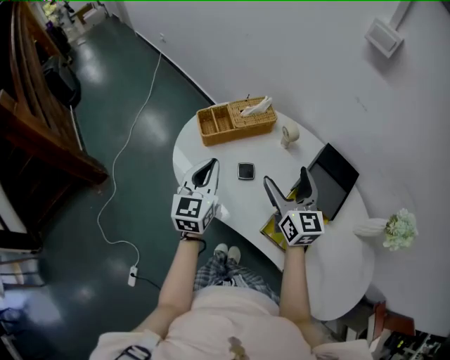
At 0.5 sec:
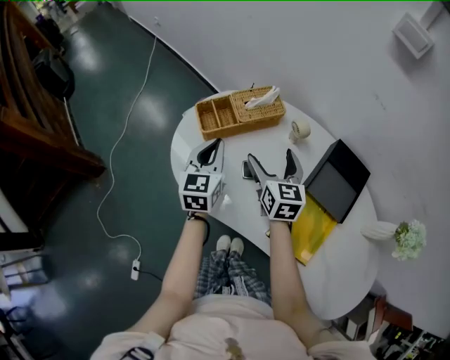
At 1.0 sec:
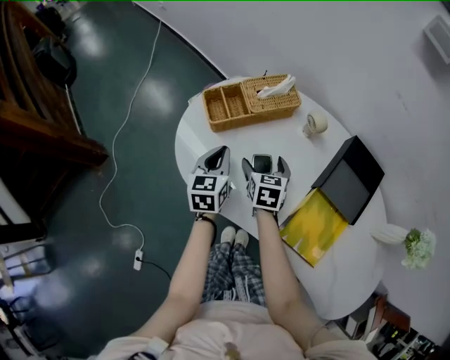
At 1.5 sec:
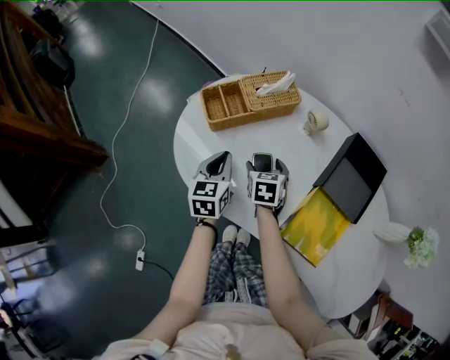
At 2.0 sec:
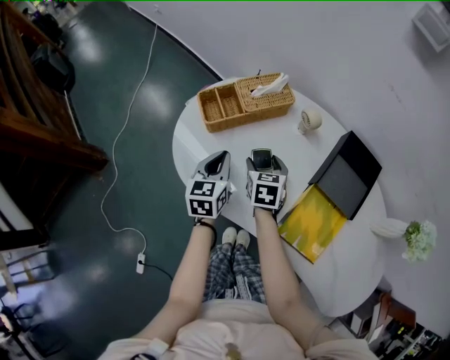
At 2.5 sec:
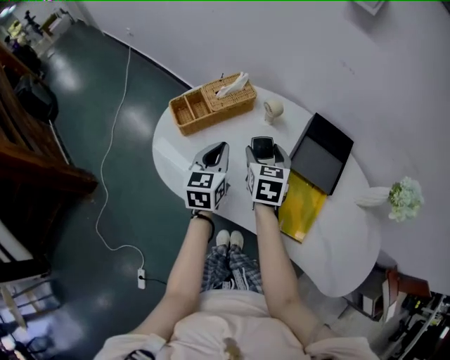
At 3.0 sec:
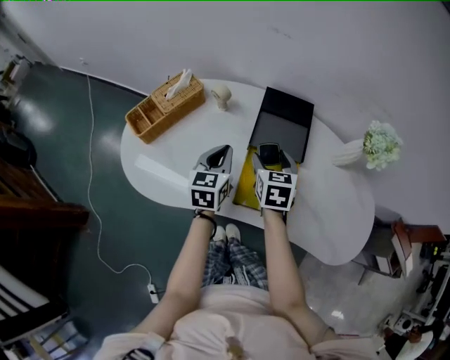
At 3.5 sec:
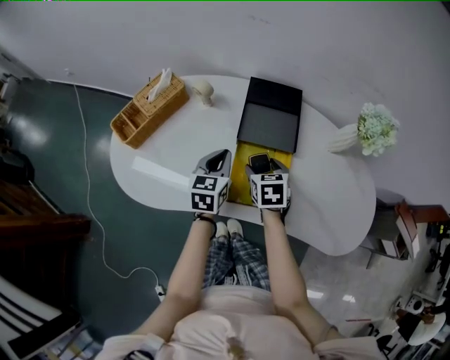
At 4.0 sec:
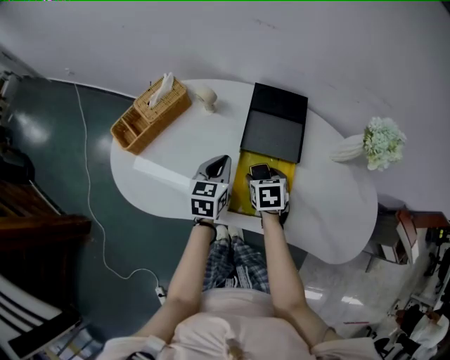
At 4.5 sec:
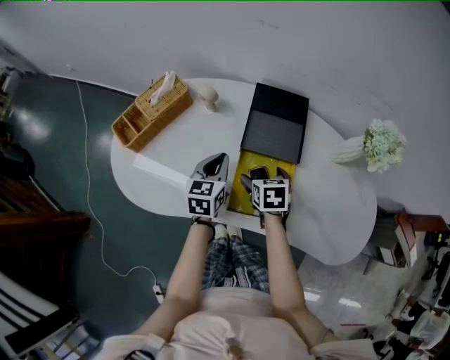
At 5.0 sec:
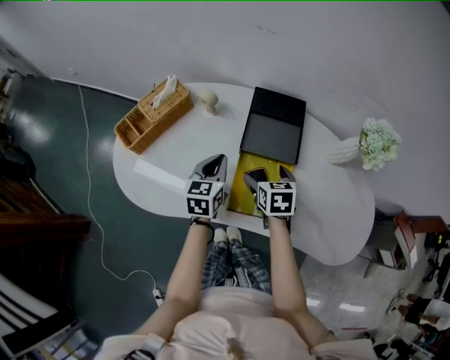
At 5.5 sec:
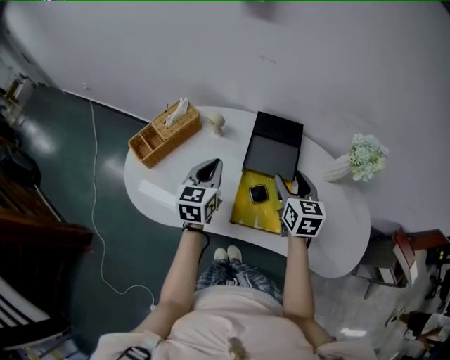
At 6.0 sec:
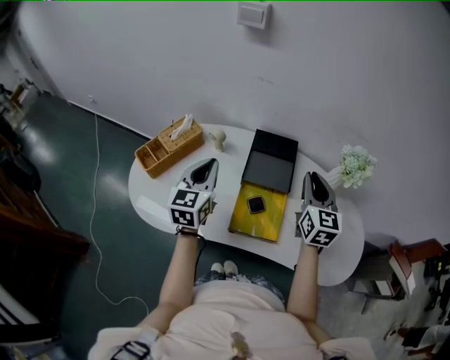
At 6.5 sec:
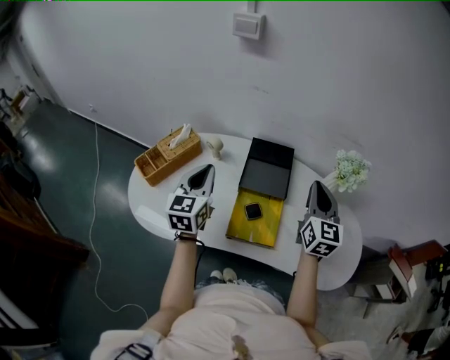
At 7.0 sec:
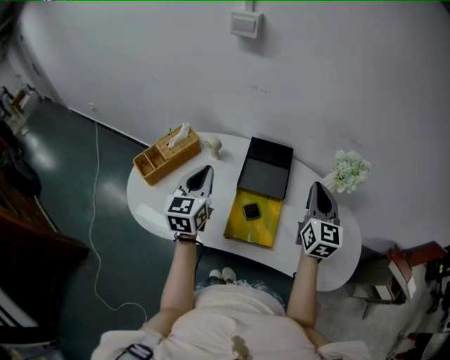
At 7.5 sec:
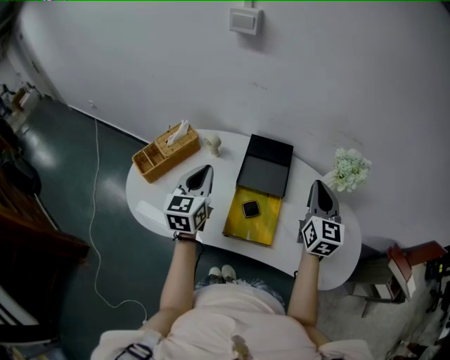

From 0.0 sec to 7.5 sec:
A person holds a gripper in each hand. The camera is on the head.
From 0.0 sec to 2.0 sec: The right gripper heads downward and to the left, covering some 25 cm, and tips its fingers downward by approximately 40 degrees, while the left gripper shifts roughly 15 cm downward and forward.
From 2.0 sec to 4.0 sec: The two grippers go roughly 25 cm to the right. The left gripper rotates about 30 degrees; the right gripper swivels some 20 degrees.
From 4.0 sec to 5.5 sec: The left gripper shifts approximately 10 cm upward. The right gripper shifts roughly 15 cm upward, and tilts its fingers some 30 degrees upward.
From 5.5 sec to 7.5 sec: The right gripper travels upward and to the right by about 15 cm, changes its angle by roughly 20 degrees, and closes. Meanwhile the left gripper is displaced upward by some 10 cm.

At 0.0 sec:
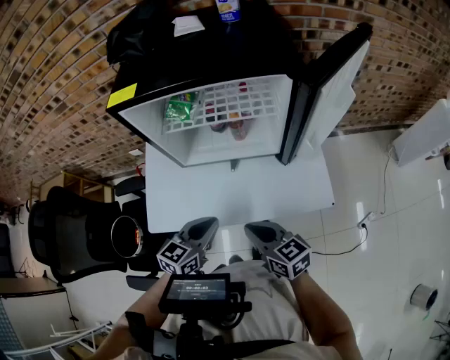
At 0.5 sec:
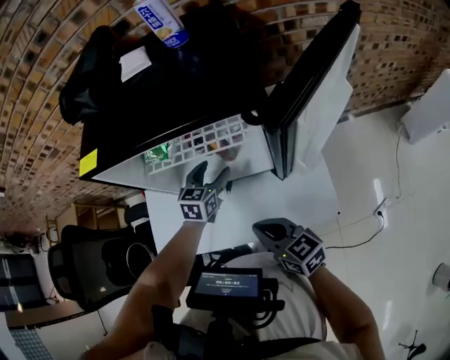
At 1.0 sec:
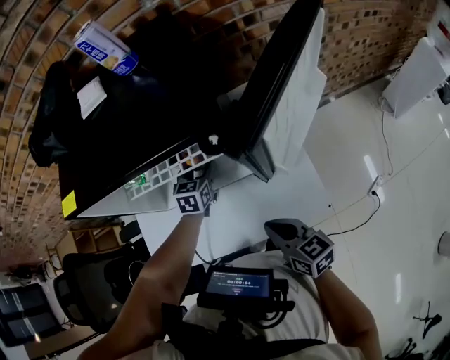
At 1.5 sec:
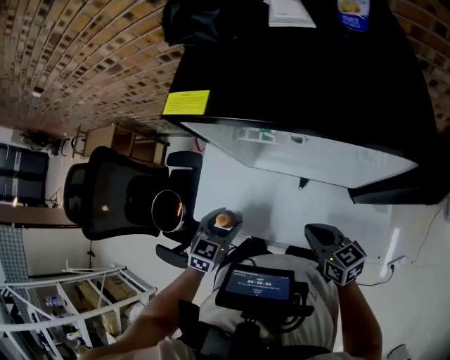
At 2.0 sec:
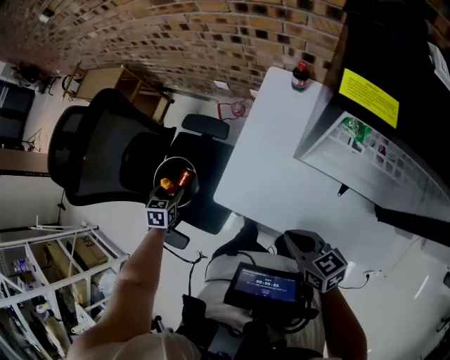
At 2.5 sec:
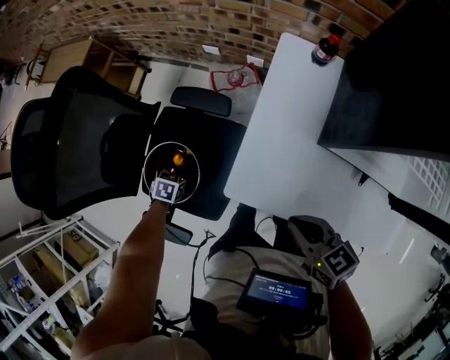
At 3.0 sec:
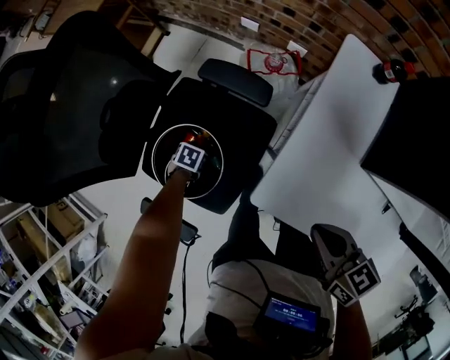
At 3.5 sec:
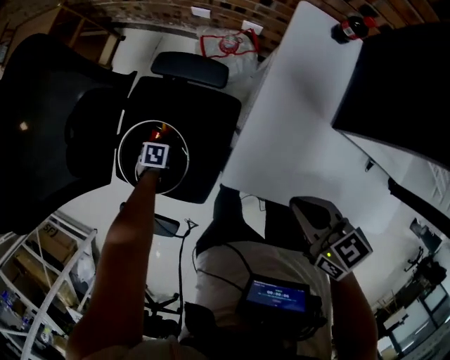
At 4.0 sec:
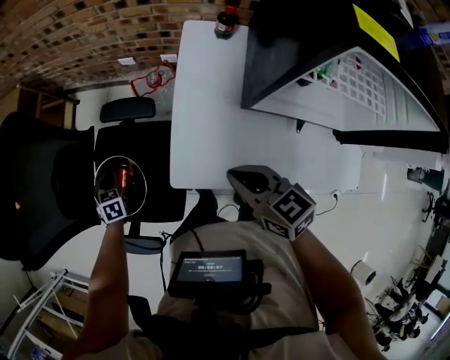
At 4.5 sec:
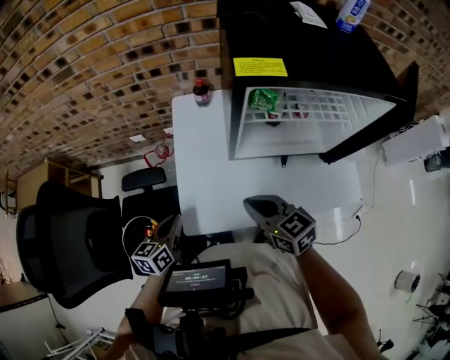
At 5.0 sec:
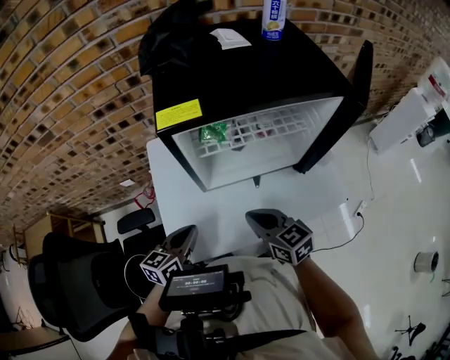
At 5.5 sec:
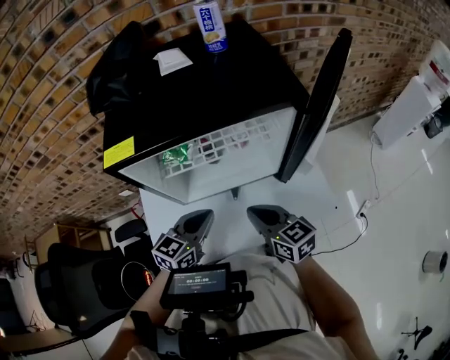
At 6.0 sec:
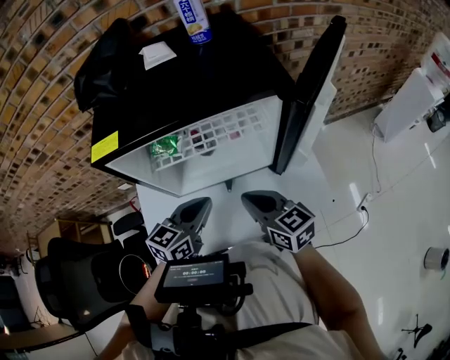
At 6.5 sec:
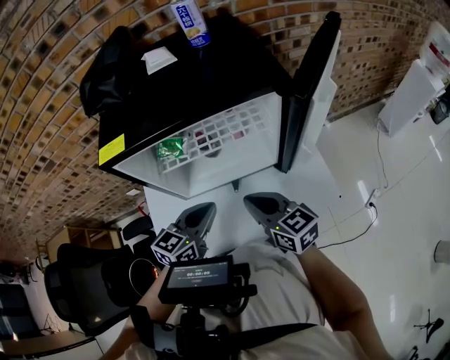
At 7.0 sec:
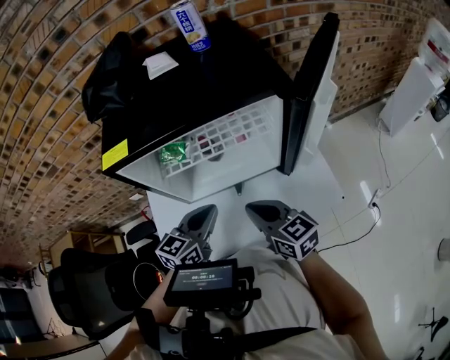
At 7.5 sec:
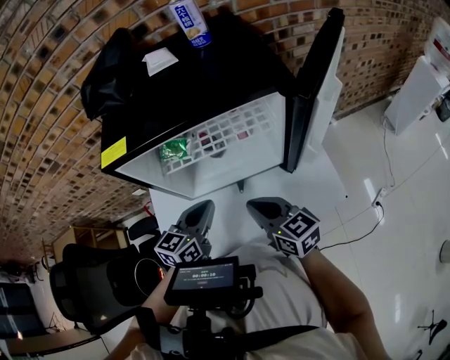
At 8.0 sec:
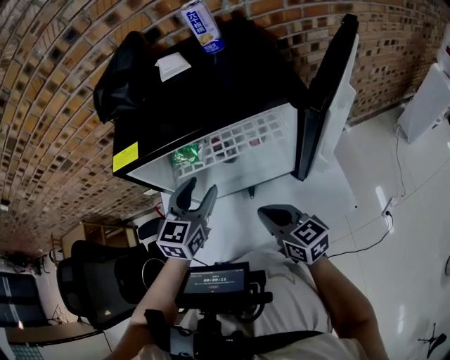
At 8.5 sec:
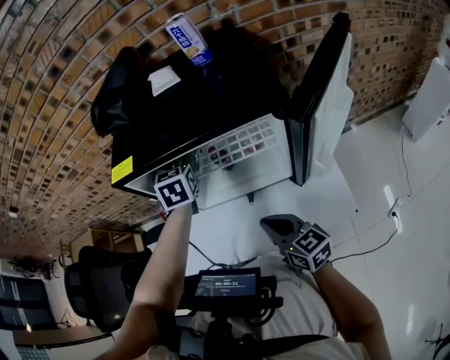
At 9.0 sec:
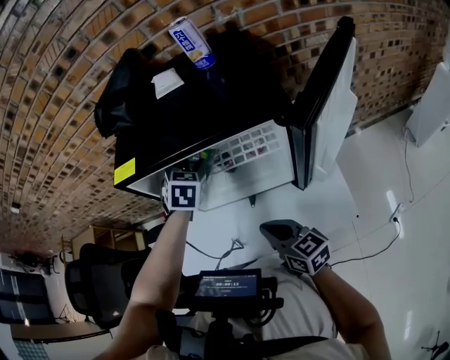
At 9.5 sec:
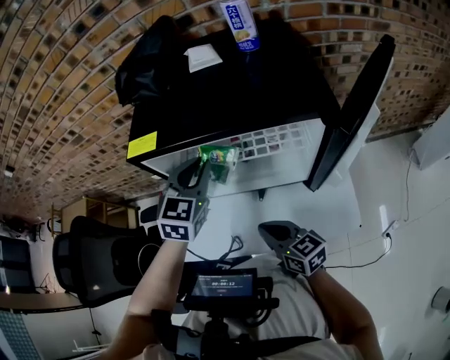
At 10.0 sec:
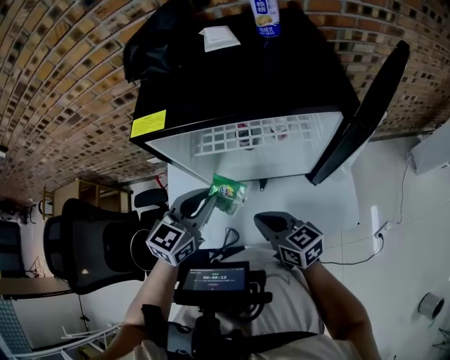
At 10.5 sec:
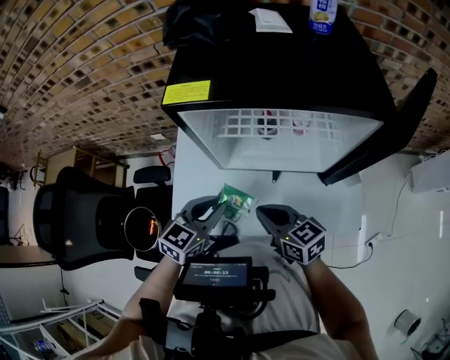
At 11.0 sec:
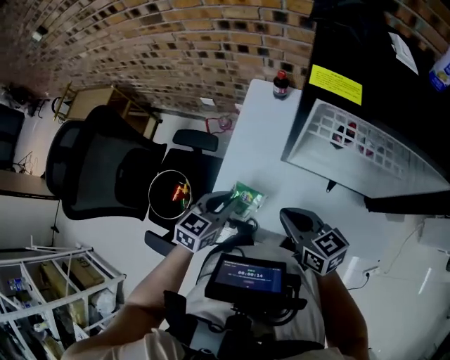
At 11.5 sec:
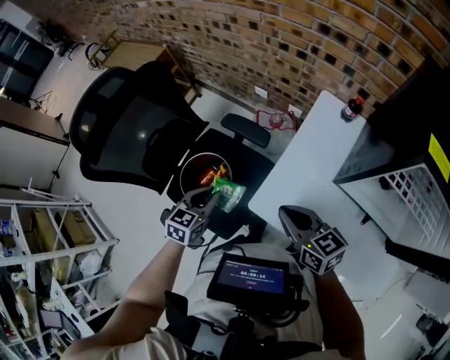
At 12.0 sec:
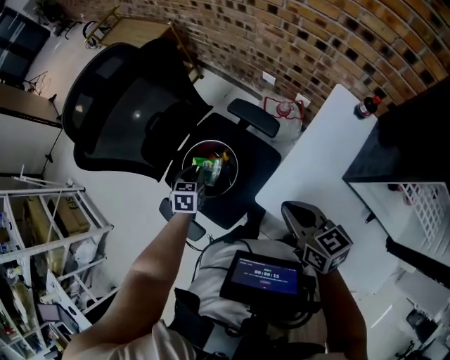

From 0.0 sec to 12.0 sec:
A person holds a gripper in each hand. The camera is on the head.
From 0.0 sec to 2.0 sec: The left gripper changes place by roughly 50 cm, rotates some 60 degrees, and opens. The right gripper changes place by approximately 15 cm, and rotates approximately 30 degrees.
From 2.0 sec to 4.0 sec: The left gripper moves about 25 cm downward and comes back, and closes up, while the right gripper shifts by approximately 15 cm.
From 4.0 sec to 6.0 sec: The left gripper ends up some 70 cm from where it was, and tips its fingers upward by about 30 degrees. Meanwhile the right gripper ends up some 35 cm from where it was, and rotates roughly 30 degrees.
From 6.0 sec to 8.0 sec: The left gripper travels forward by about 5 cm, rotates some 30 degrees, and opens.
From 8.0 sec to 10.0 sec: The right gripper shifts about 5 cm to the left; the left gripper moves about 15 cm forward and comes back, and closes up.
From 10.0 sec to 12.0 sec: The left gripper ends up some 60 cm from where it was, and changes its angle by about 70 degrees, while the right gripper ends up some 35 cm from where it was, and changes its angle by about 30 degrees.

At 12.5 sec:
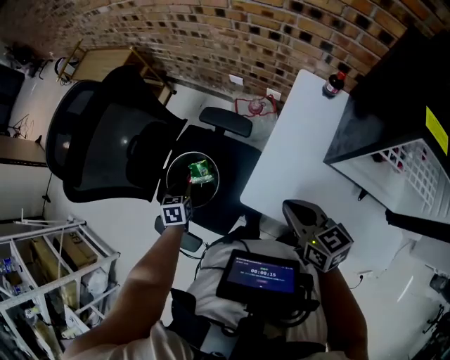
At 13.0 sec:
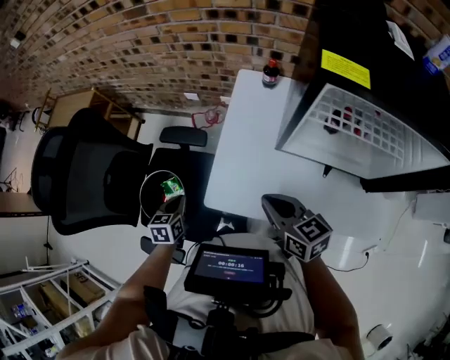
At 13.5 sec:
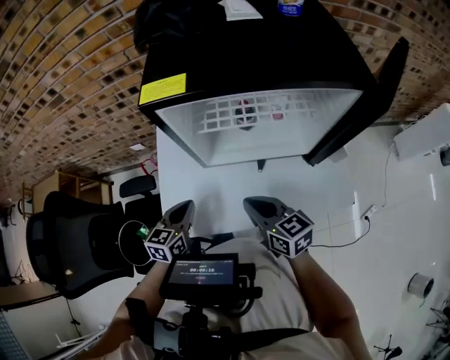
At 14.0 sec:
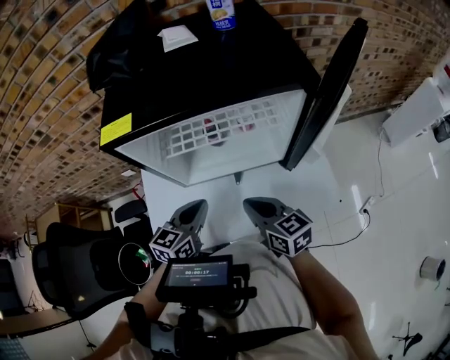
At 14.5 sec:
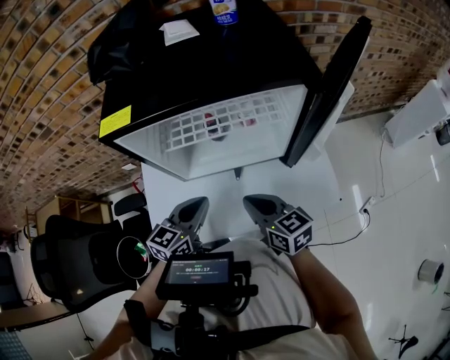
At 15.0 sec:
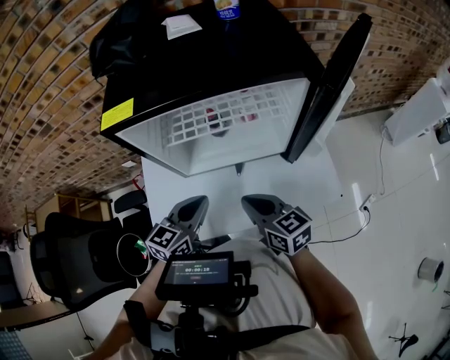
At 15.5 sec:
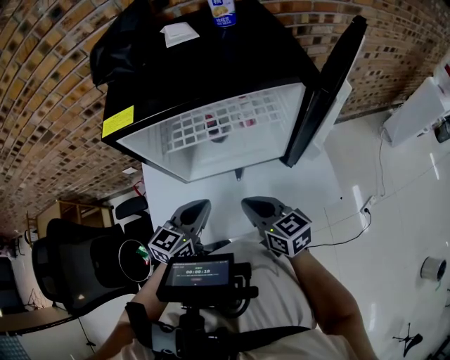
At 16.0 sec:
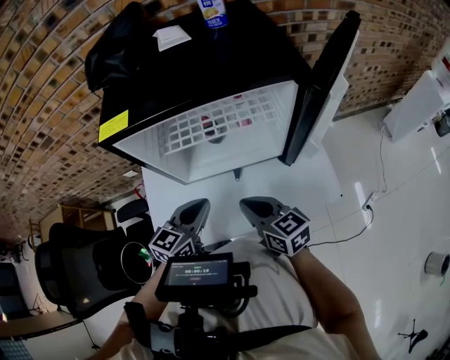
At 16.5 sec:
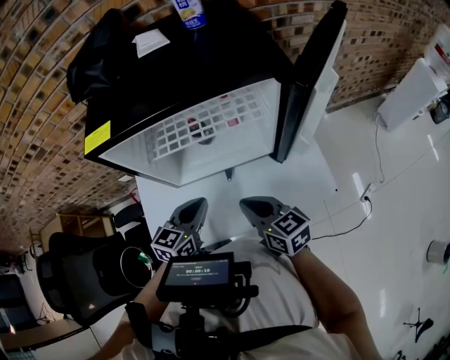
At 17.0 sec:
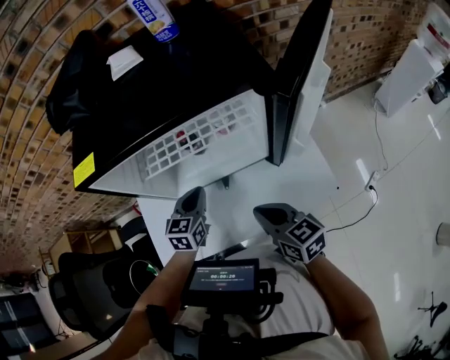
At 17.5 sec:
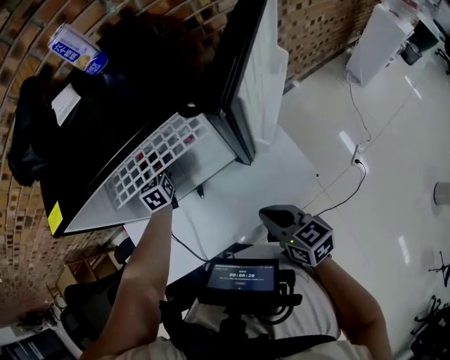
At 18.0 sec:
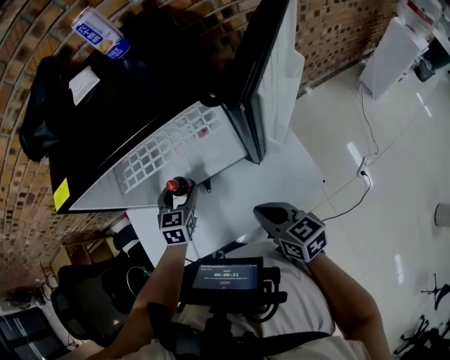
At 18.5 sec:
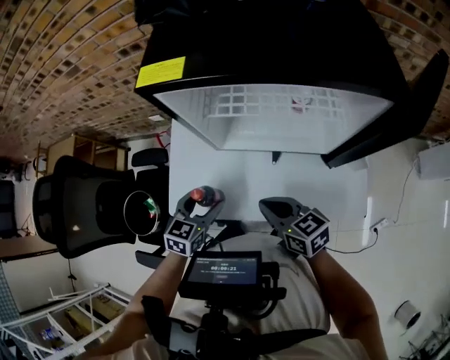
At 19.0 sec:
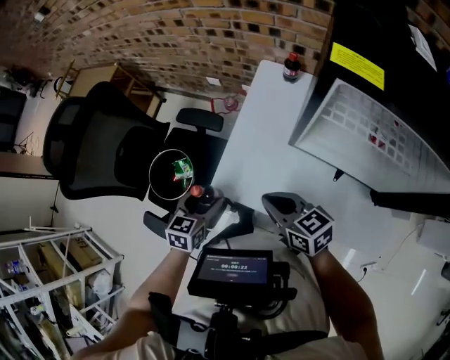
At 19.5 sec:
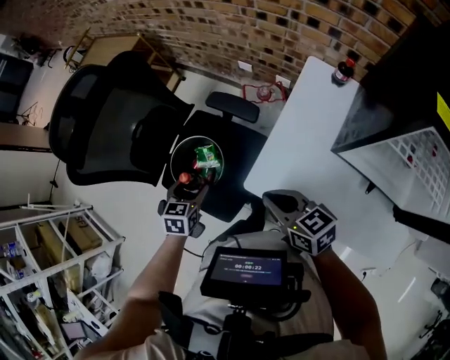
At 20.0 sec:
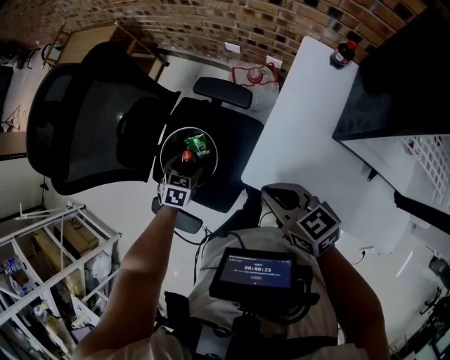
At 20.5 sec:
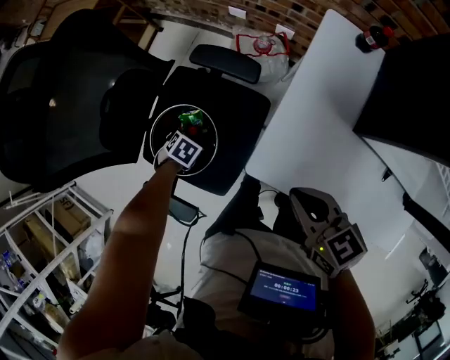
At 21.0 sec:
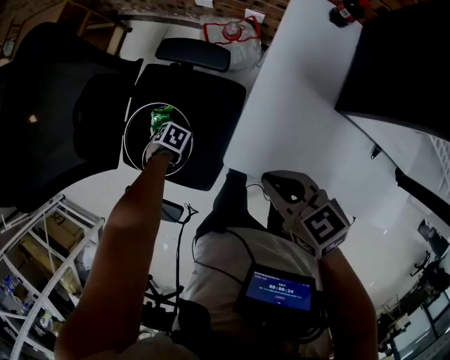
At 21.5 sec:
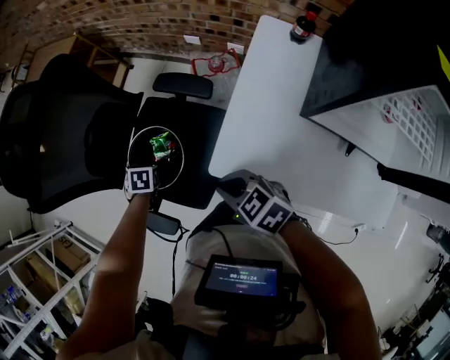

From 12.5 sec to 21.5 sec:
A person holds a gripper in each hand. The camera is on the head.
From 12.5 sec to 14.5 sec: The right gripper moves some 35 cm, and changes its angle by about 30 degrees. Meanwhile the left gripper ends up approximately 60 cm from where it was, tips its fingers upward by approximately 30 degrees, and closes its fingers.
From 14.5 sec to 17.0 sec: The left gripper moves forward and downward, approximately 10 cm; the right gripper goes some 5 cm to the right.
From 17.0 sec to 19.5 sec: The pair of grippers is taken approximately 50 cm. The left gripper changes its angle by approximately 50 degrees, and opens up. The right gripper changes its angle by about 50 degrees.
From 19.5 sec to 21.5 sec: The left gripper heads downward, covering about 10 cm, changes its angle by approximately 30 degrees, and closes its fingers; the right gripper is displaced downward by some 5 cm, and turns by roughly 20 degrees.
